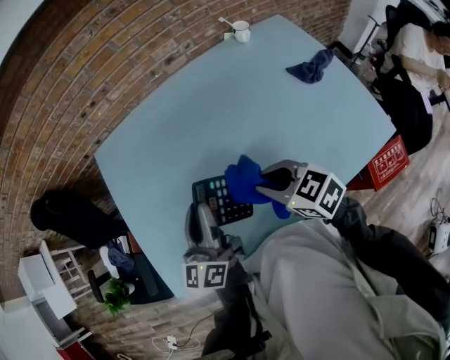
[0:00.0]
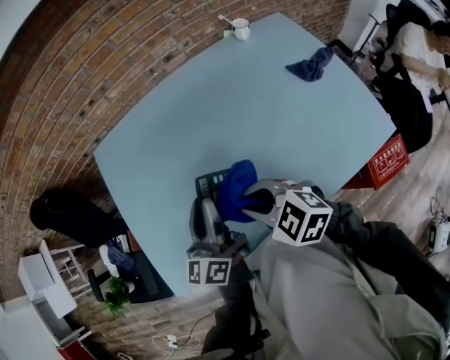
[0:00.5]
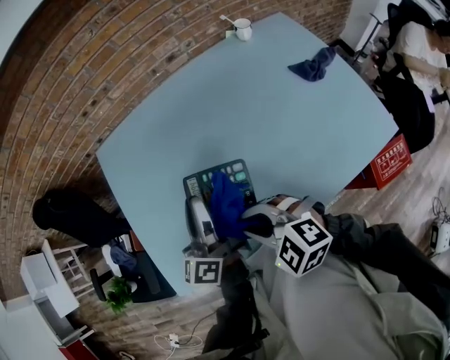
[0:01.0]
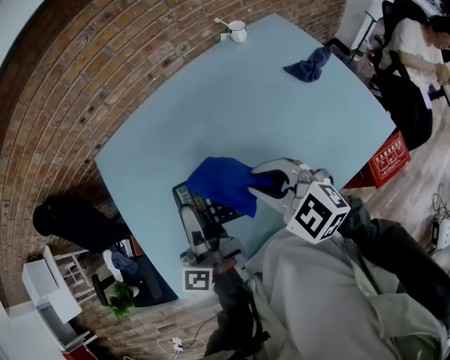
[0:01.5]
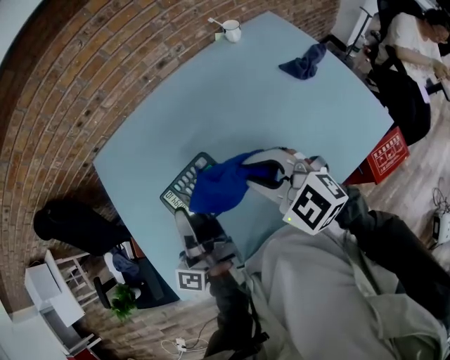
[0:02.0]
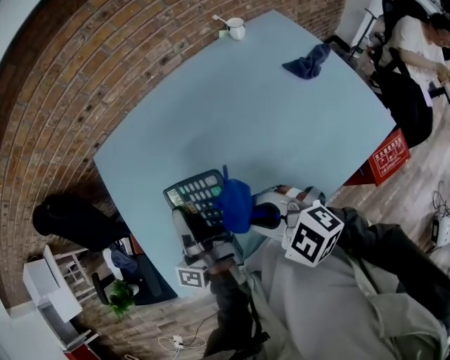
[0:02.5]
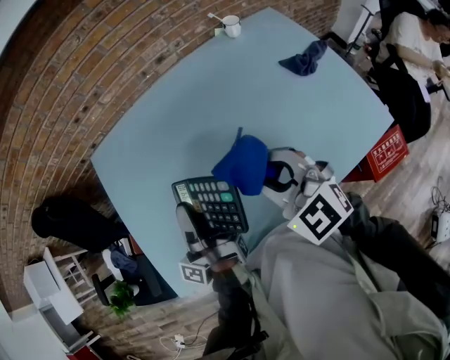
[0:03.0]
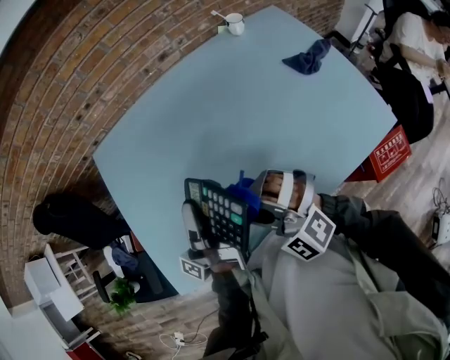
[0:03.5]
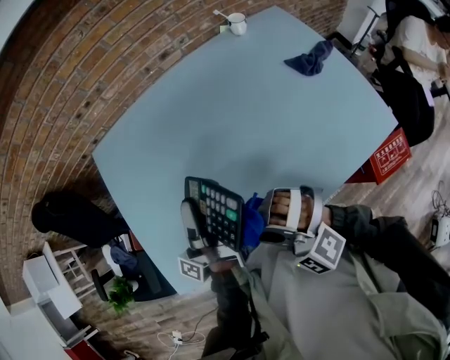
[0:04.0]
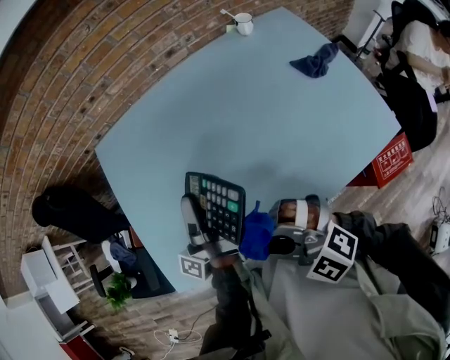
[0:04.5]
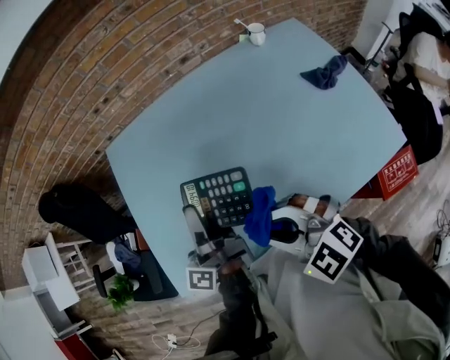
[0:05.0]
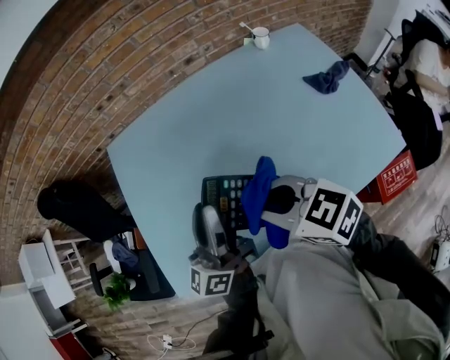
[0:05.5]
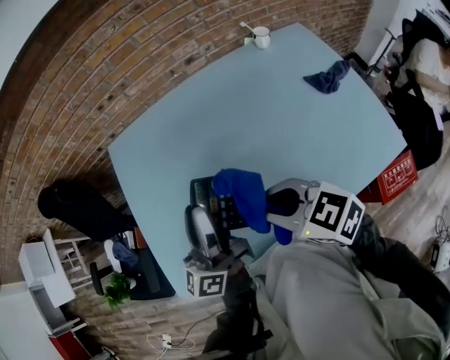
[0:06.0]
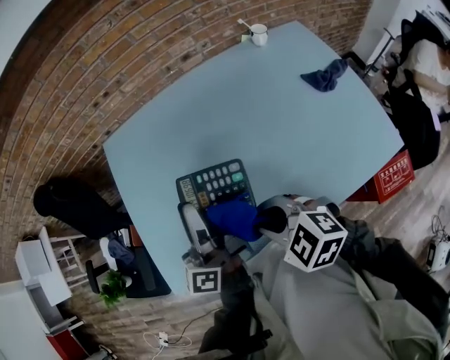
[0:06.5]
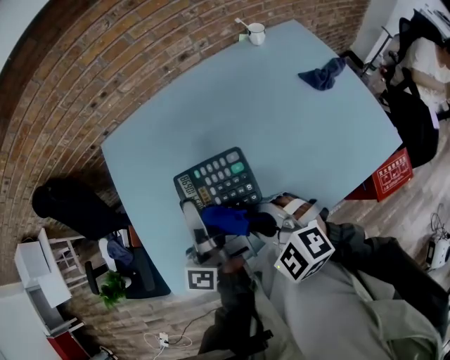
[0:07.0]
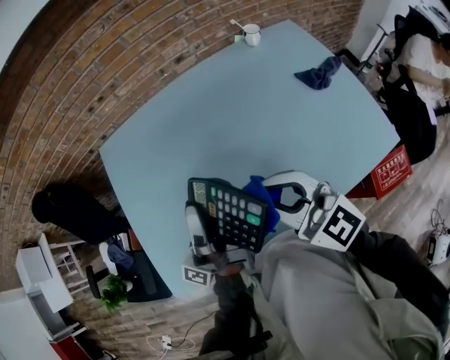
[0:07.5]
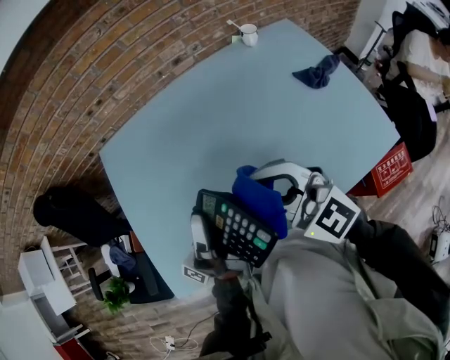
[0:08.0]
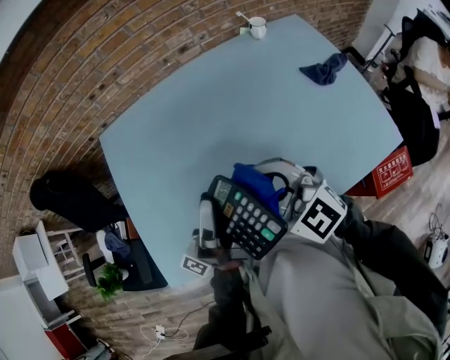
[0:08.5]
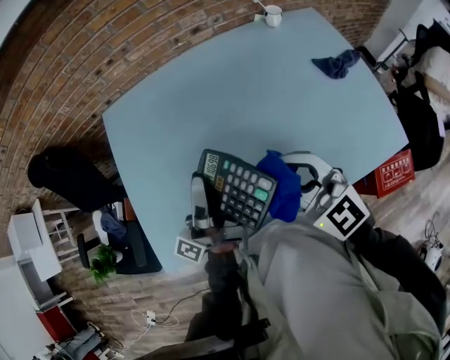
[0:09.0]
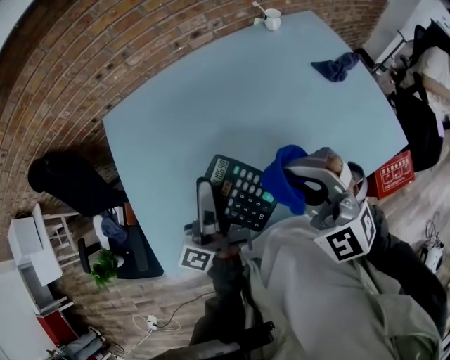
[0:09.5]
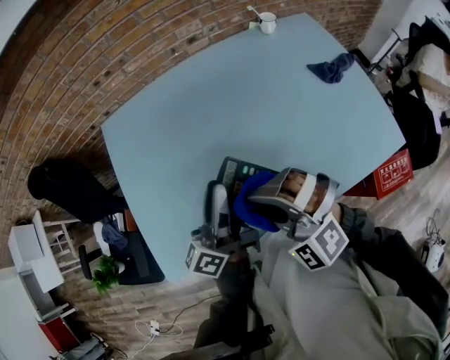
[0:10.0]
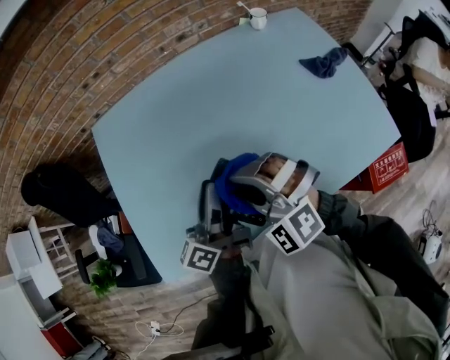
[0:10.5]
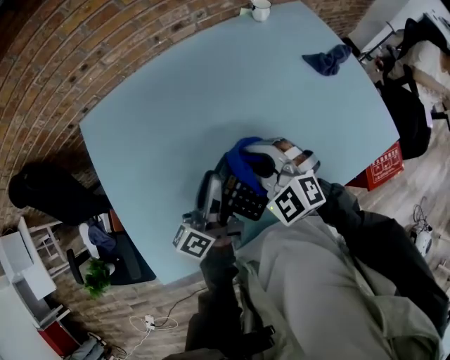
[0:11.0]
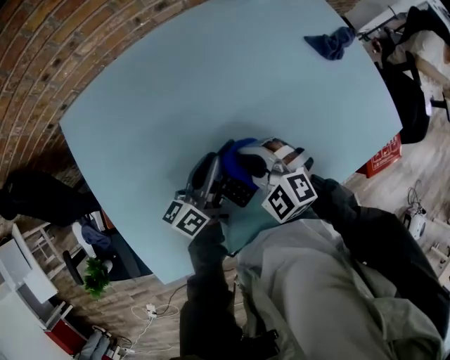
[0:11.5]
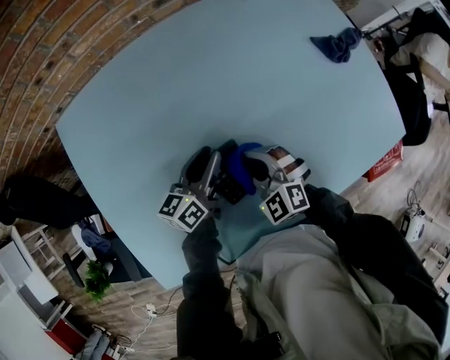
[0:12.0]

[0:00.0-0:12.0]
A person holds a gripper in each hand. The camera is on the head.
0:00.0 to 0:02.0: The right gripper travels upward by about 10 cm, reaches approximately 10 cm to the left, then returns, and swivels some 30 degrees. The left gripper rotates around the line of its fingers by approximately 40 degrees, counterclockwise from behind.
0:02.0 to 0:04.0: The left gripper turns by about 20 degrees. Meanwhile the right gripper moves left and right over roughly 10 cm, changing direction 2 times, and rotates around the line of its fingers by approximately 40 degrees, counterclockwise from behind.
0:04.0 to 0:06.0: The right gripper is displaced to the right by roughly 5 cm, and rotates around the line of its fingers by about 70 degrees, clockwise from behind; the left gripper is displaced upward by some 5 cm, and rolls clockwise, seen from behind, by approximately 50 degrees.
0:06.0 to 0:08.0: The left gripper rotates around the line of its fingers by some 50 degrees, counterclockwise from behind. Meanwhile the right gripper moves upward, roughly 5 cm, and changes its angle by roughly 40 degrees.
0:08.0 to 0:10.0: The left gripper shifts approximately 5 cm downward, and rotates about 50 degrees, while the right gripper shifts roughly 10 cm downward and to the left, and changes its angle by roughly 50 degrees.
0:10.0 to 0:12.0: The grippers both shift downward and forward by approximately 25 cm. The left gripper swivels approximately 40 degrees. Meanwhile the right gripper rotates about 30 degrees.

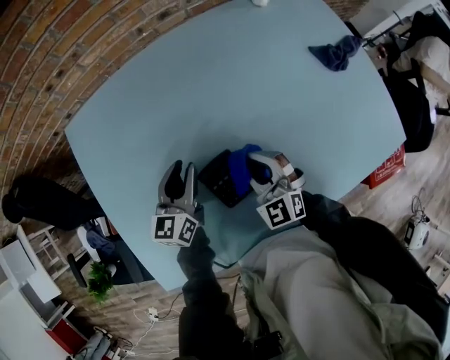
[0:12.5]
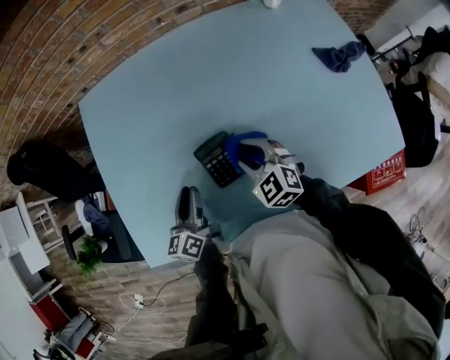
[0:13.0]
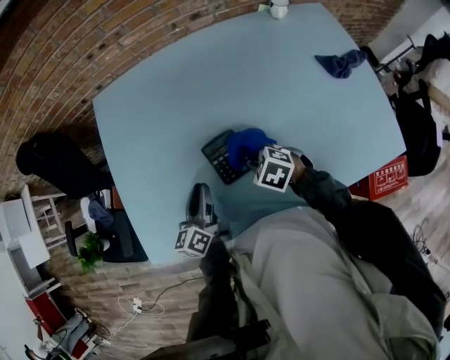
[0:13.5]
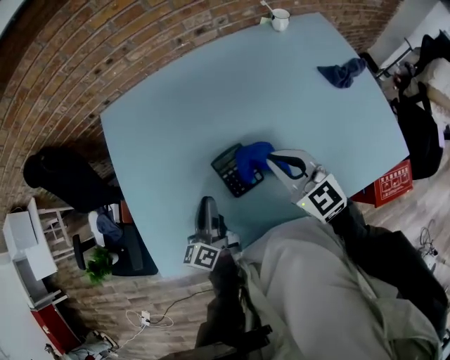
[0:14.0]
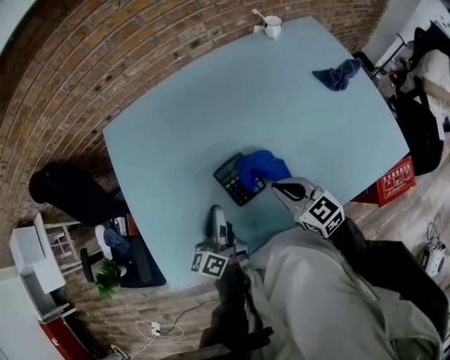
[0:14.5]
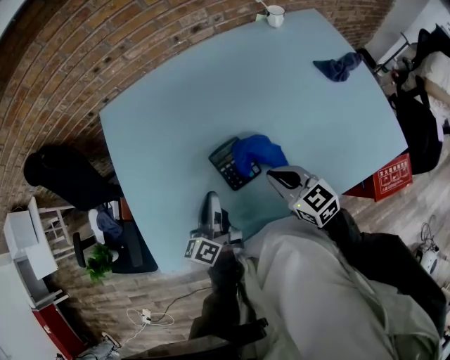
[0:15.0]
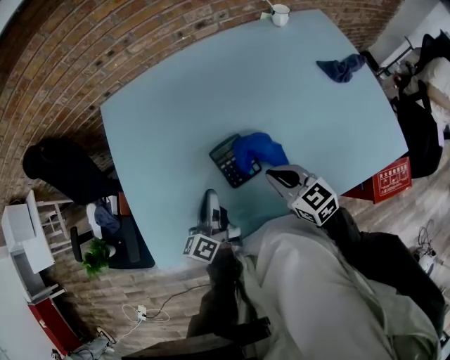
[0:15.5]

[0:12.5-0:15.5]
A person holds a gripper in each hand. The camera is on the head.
0:12.5 to 0:14.0: The right gripper heads upward, covering about 10 cm, and turns by some 30 degrees, while the left gripper changes place by approximately 15 cm, and changes its angle by roughly 40 degrees.
0:14.0 to 0:15.5: The right gripper heads downward and backward, covering approximately 10 cm.

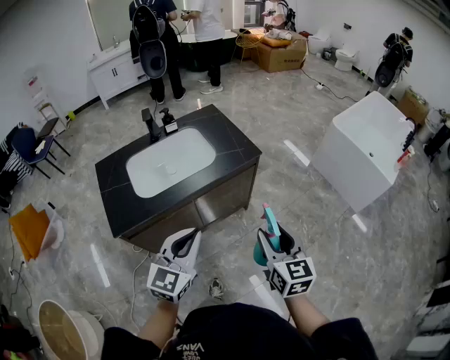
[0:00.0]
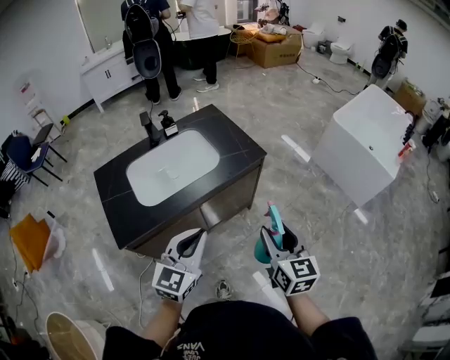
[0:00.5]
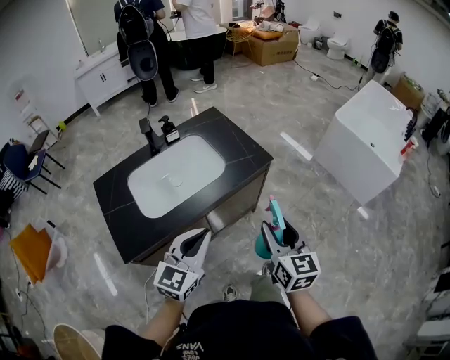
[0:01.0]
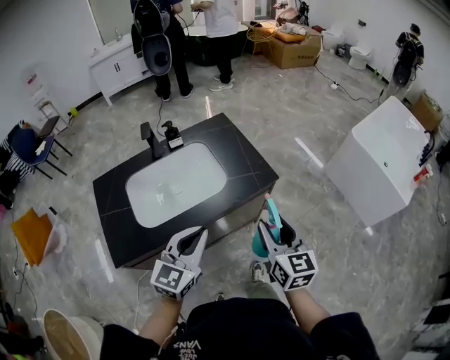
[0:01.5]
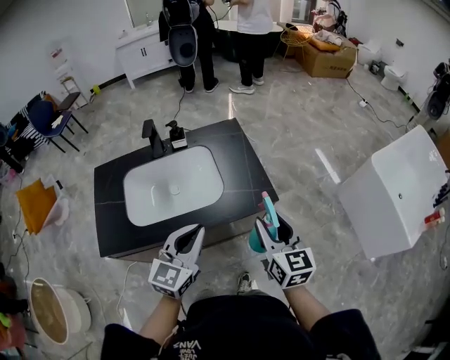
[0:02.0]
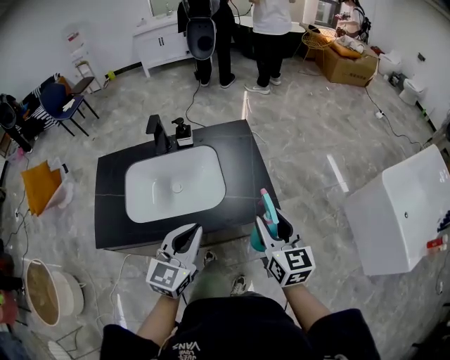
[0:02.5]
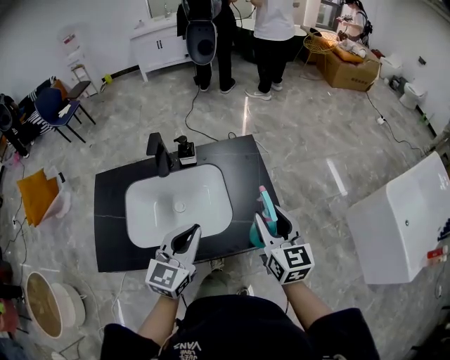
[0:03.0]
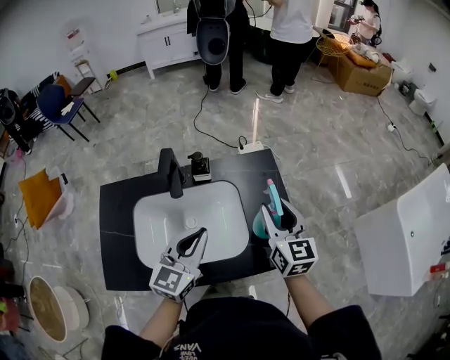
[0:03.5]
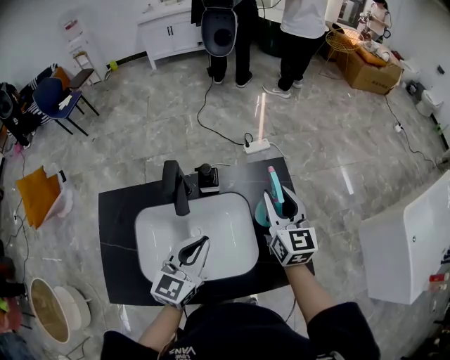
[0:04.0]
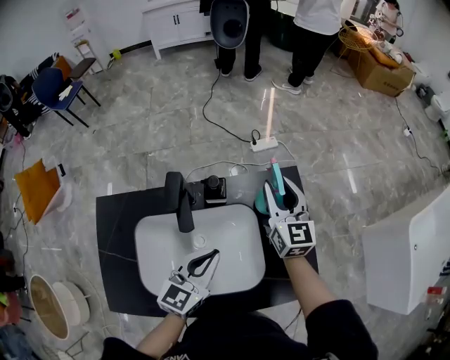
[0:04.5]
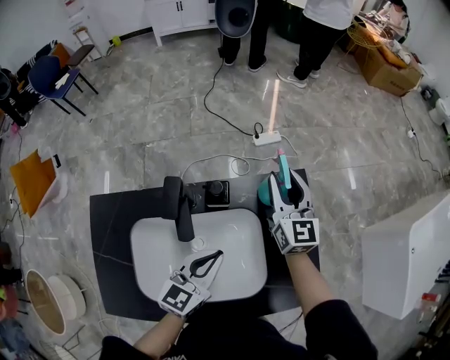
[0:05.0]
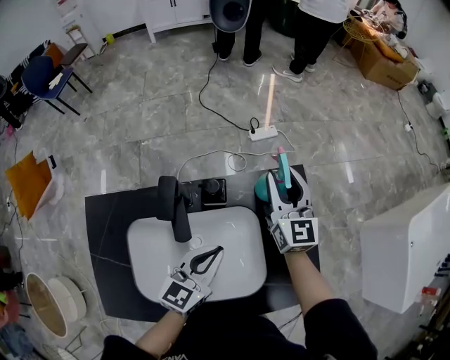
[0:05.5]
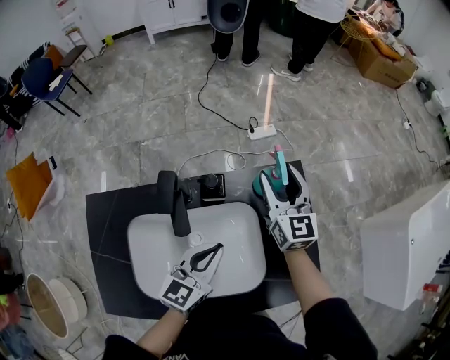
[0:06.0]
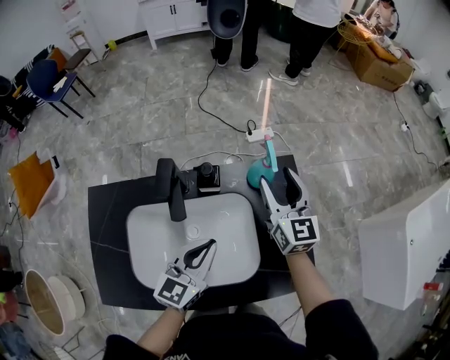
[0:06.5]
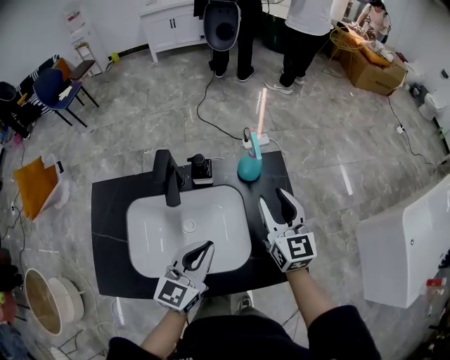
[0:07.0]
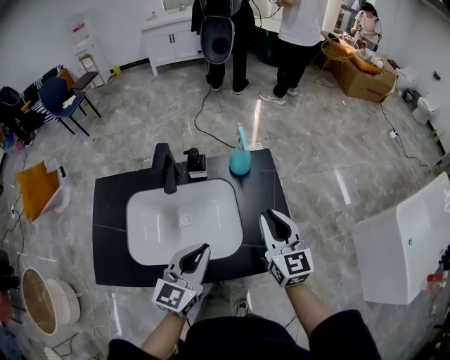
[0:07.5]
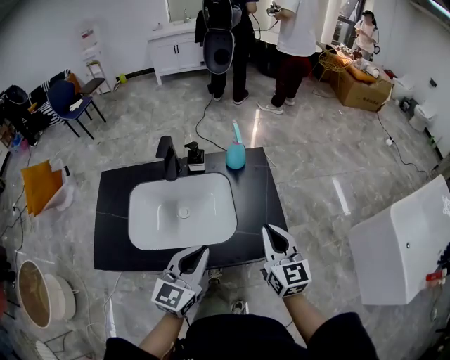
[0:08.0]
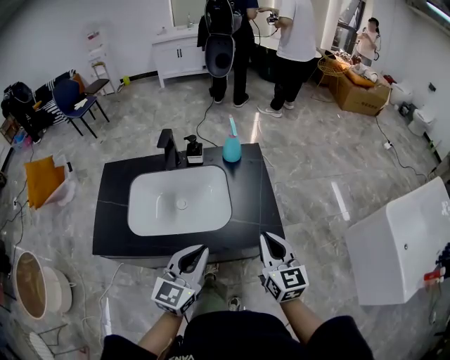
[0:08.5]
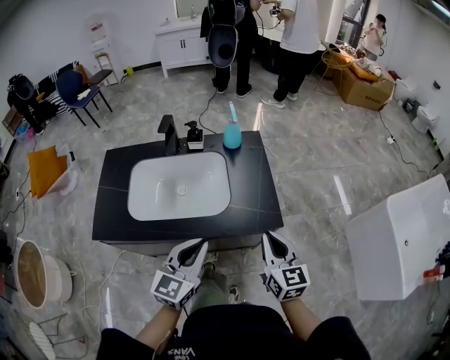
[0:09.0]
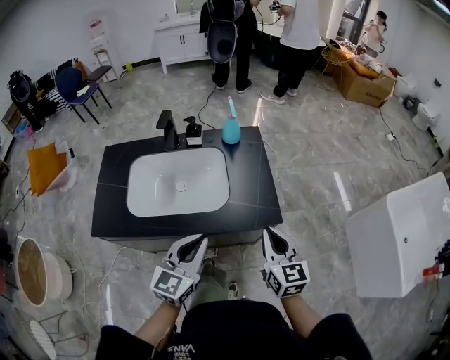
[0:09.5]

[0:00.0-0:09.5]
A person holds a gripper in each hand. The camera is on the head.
0:00.0 to 0:02.0: Both grippers move forward, about 30 cm.
0:02.0 to 0:04.0: The right gripper is displaced forward by some 40 cm, while the left gripper shifts roughly 30 cm forward and to the left.
0:04.0 to 0:05.5: The left gripper moves downward and forward, some 10 cm. Meanwhile the right gripper moves forward, downward and to the left, some 15 cm.
0:05.5 to 0:07.5: The left gripper moves backward and upward, approximately 20 cm, while the right gripper heads backward, covering roughly 30 cm, and closes its fingers.
0:07.5 to 0:09.5: Both grippers move backward, approximately 20 cm.

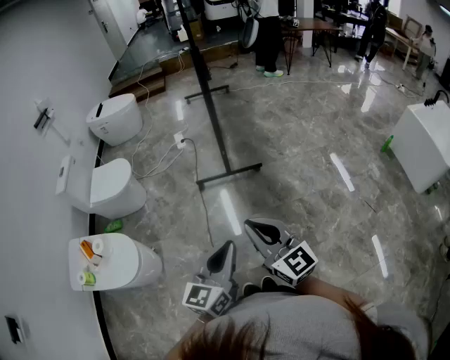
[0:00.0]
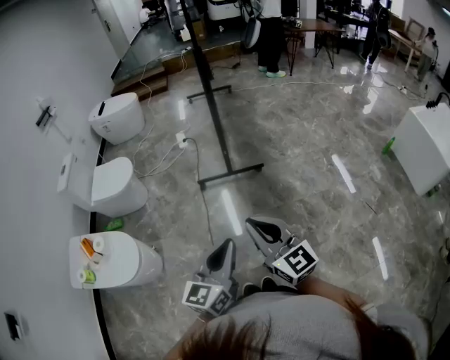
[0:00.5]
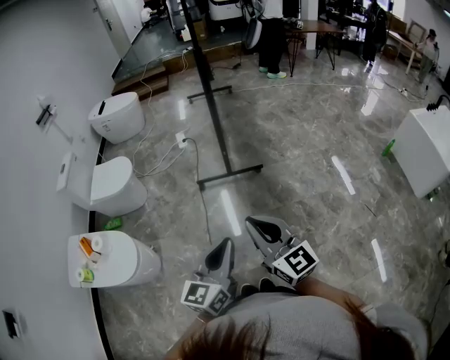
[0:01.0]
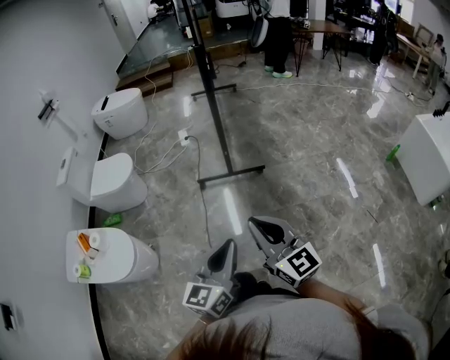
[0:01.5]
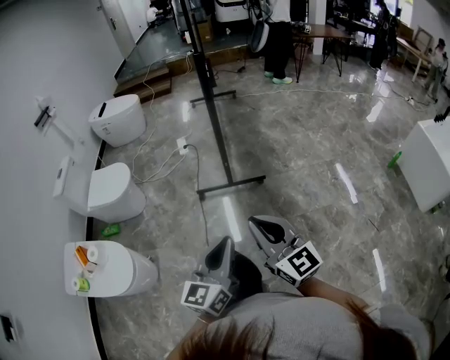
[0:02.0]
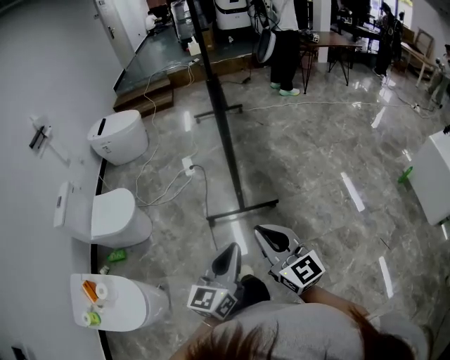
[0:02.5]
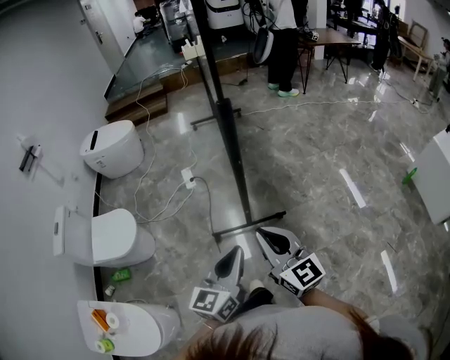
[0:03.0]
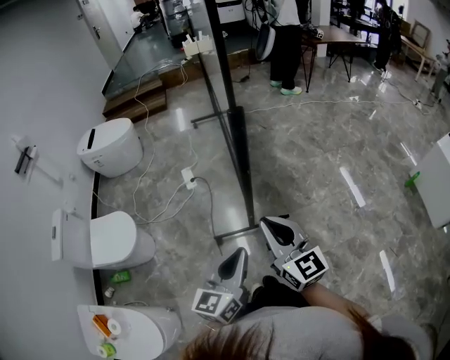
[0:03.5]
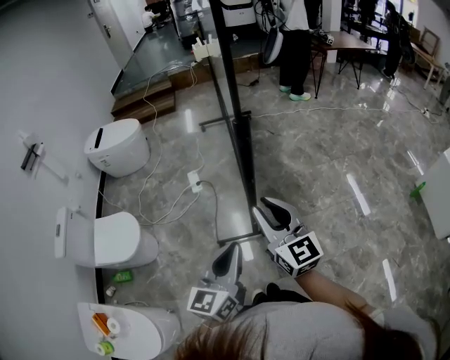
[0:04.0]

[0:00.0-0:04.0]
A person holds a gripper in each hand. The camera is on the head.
0:00.0 to 0:02.0: Both grippers move forward, about 10 cm.
0:02.0 to 0:04.0: The grippers both shift forward by some 40 cm.
